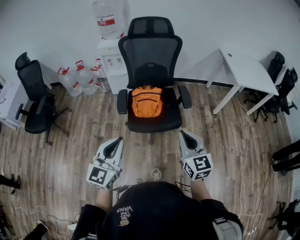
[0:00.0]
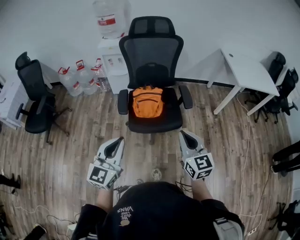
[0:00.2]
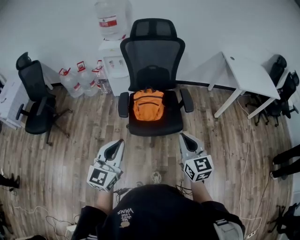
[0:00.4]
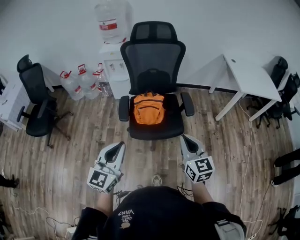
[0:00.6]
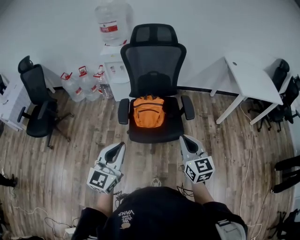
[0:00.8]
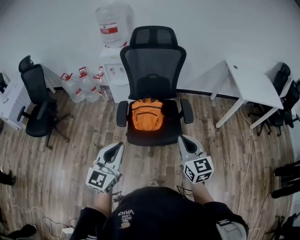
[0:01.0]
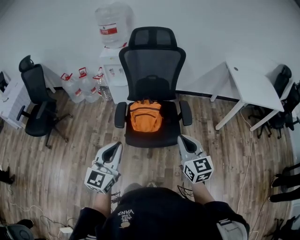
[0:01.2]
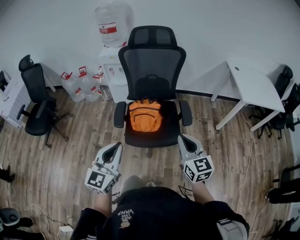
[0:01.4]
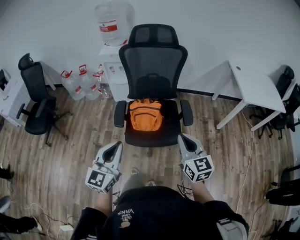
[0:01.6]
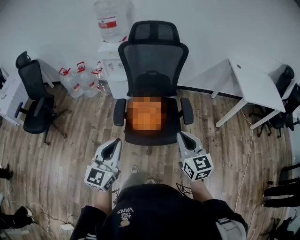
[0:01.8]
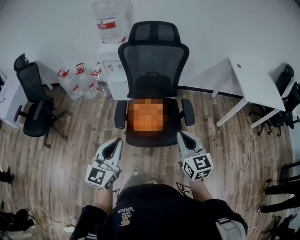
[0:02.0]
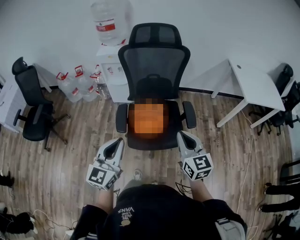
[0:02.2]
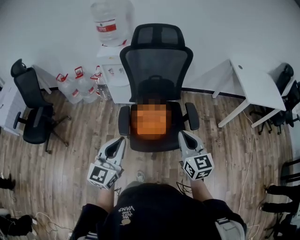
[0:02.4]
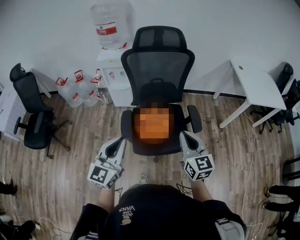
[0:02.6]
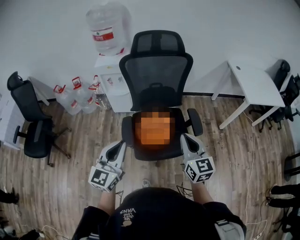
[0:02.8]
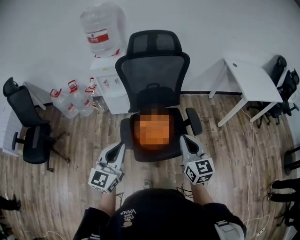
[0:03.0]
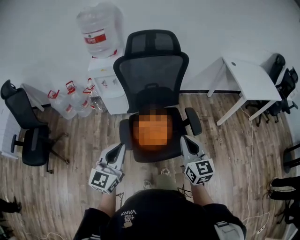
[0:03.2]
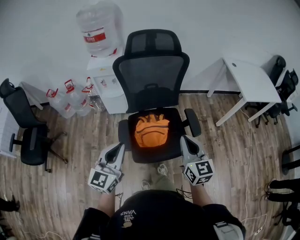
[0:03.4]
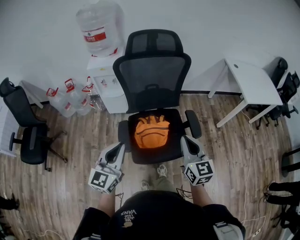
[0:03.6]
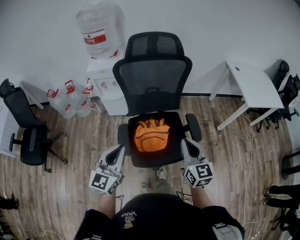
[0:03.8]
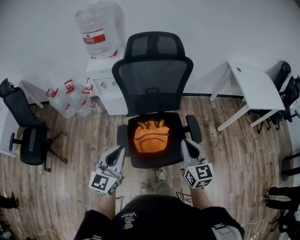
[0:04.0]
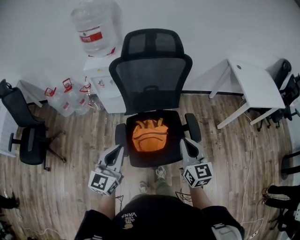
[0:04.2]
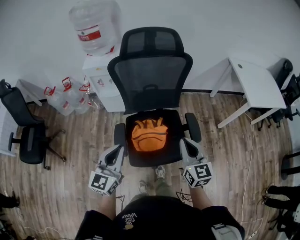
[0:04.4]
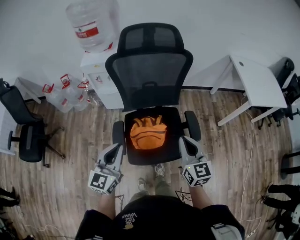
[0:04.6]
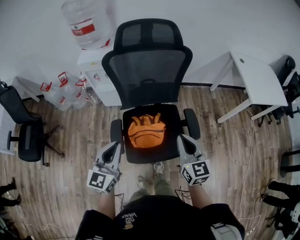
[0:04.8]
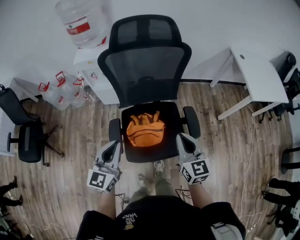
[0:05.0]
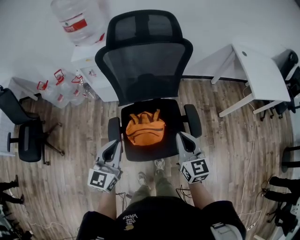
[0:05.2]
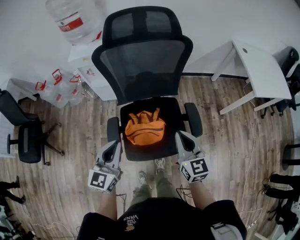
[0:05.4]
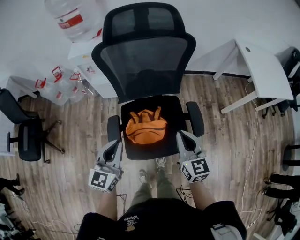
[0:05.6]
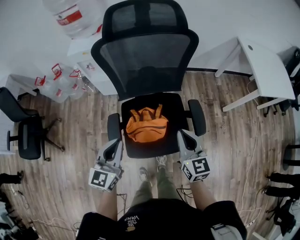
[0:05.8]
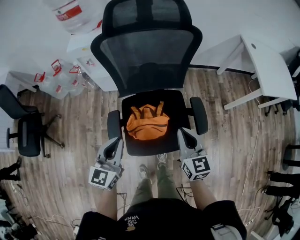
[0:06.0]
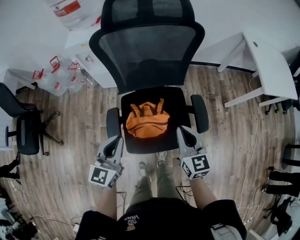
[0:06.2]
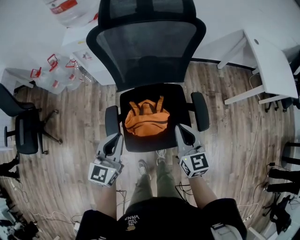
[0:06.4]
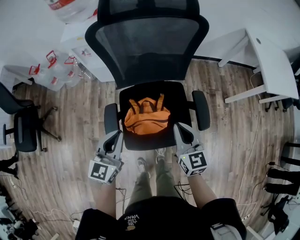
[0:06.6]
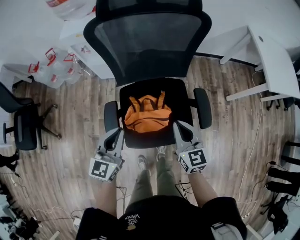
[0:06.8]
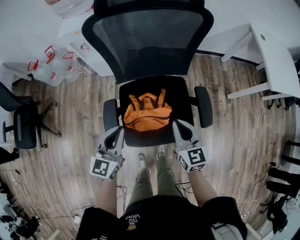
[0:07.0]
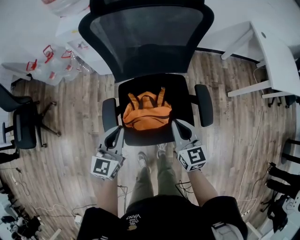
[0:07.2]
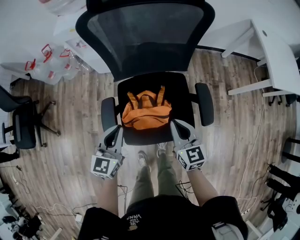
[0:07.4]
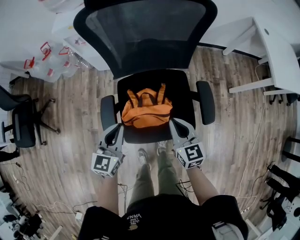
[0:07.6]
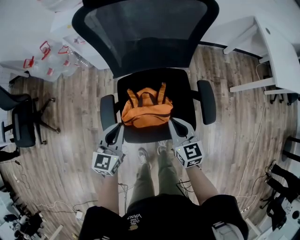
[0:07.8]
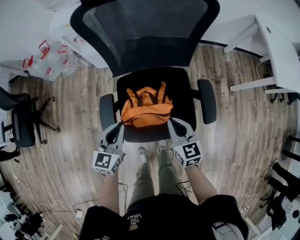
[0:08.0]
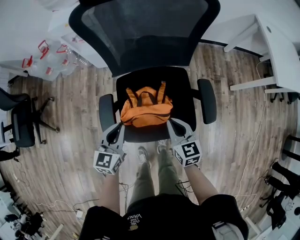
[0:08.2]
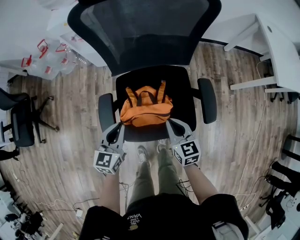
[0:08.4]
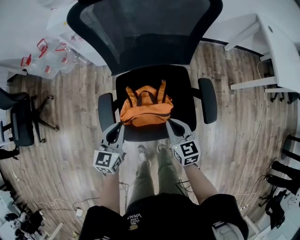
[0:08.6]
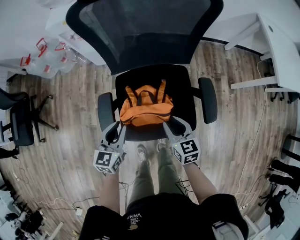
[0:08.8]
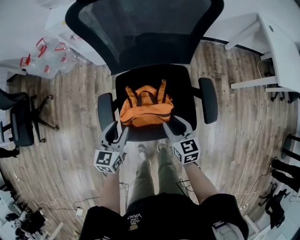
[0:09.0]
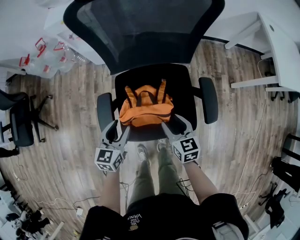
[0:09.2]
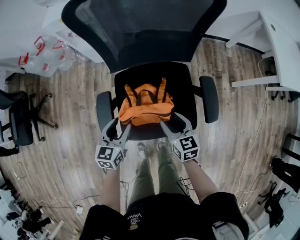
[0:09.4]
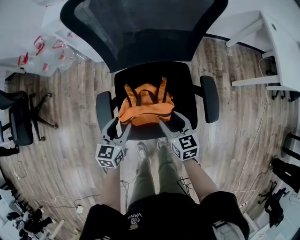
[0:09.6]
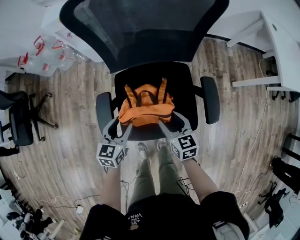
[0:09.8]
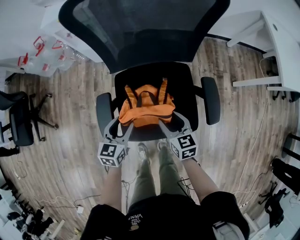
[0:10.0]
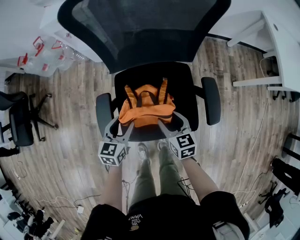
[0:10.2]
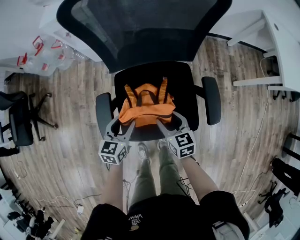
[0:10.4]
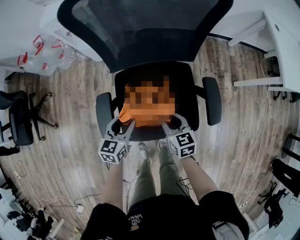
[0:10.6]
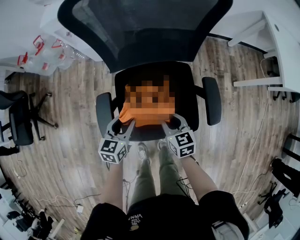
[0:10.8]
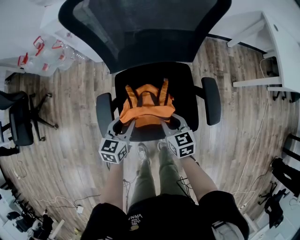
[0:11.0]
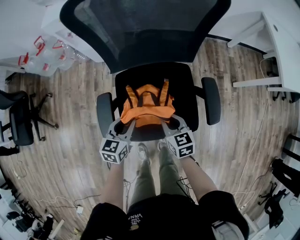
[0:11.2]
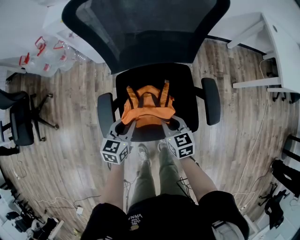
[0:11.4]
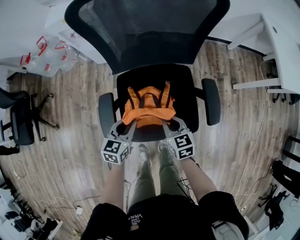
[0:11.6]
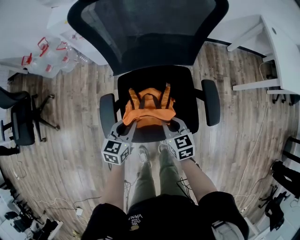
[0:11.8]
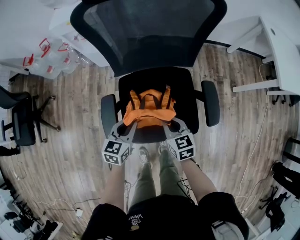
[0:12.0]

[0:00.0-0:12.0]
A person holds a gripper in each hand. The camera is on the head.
0:00.0 to 0:01.6: The two grippers go some 10 cm forward.
0:01.6 to 0:03.0: Both grippers travel together forward and to the left, approximately 20 cm.
0:03.0 to 0:04.4: Both grippers travel together forward, some 10 cm.
0:04.4 to 0:06.0: Both grippers travel together downward and forward, roughly 10 cm.
0:06.0 to 0:07.6: The grippers both shift downward by about 15 cm.
0:07.6 to 0:09.0: Both grippers move downward, approximately 10 cm. The right gripper opens up; the left gripper opens its fingers.
0:09.0 to 0:10.4: The left gripper shifts some 5 cm downward. The right gripper changes place by some 5 cm.
0:10.4 to 0:12.0: The right gripper closes its fingers. The left gripper closes.

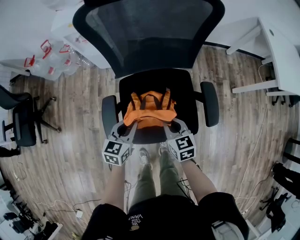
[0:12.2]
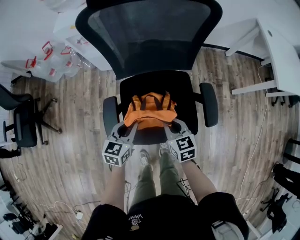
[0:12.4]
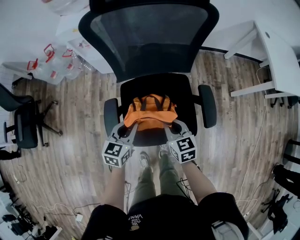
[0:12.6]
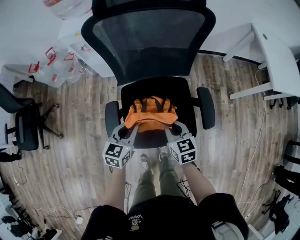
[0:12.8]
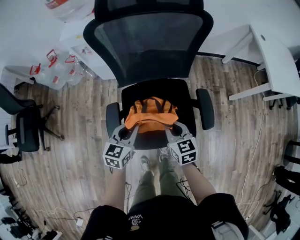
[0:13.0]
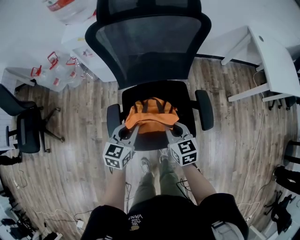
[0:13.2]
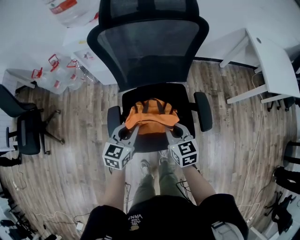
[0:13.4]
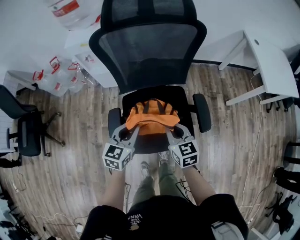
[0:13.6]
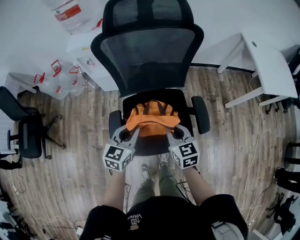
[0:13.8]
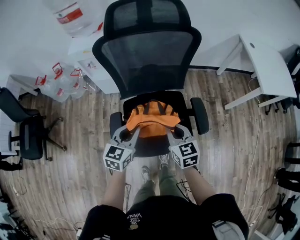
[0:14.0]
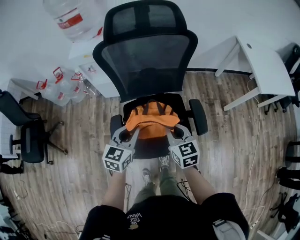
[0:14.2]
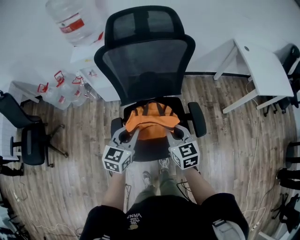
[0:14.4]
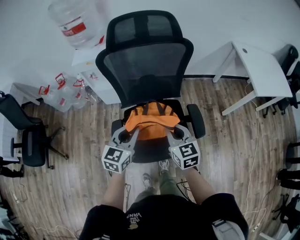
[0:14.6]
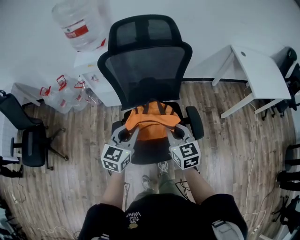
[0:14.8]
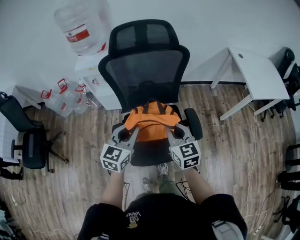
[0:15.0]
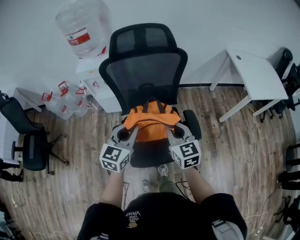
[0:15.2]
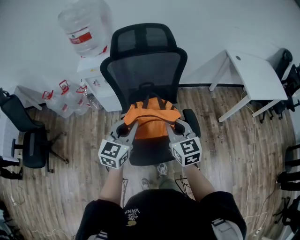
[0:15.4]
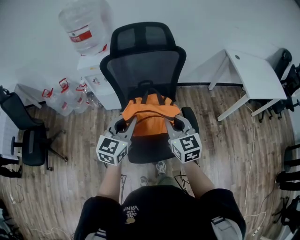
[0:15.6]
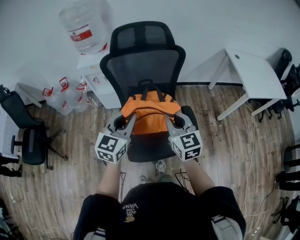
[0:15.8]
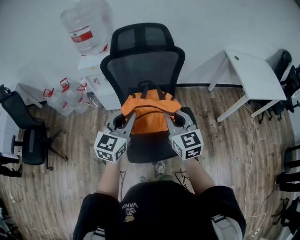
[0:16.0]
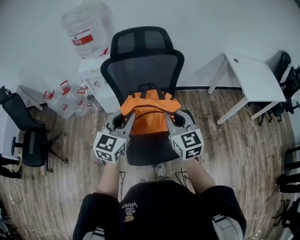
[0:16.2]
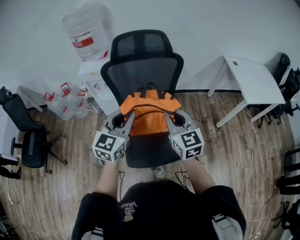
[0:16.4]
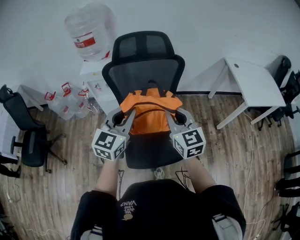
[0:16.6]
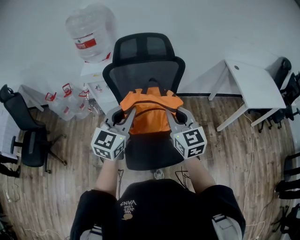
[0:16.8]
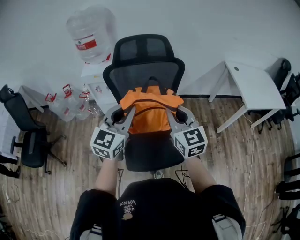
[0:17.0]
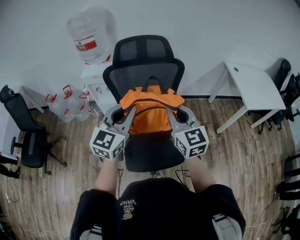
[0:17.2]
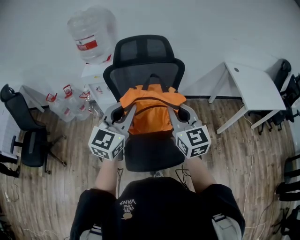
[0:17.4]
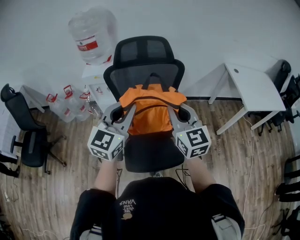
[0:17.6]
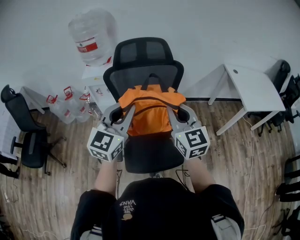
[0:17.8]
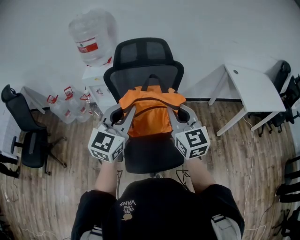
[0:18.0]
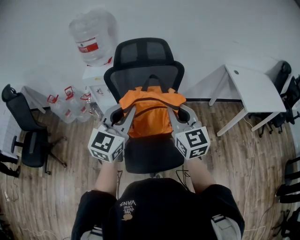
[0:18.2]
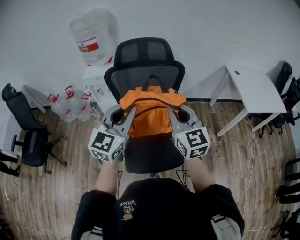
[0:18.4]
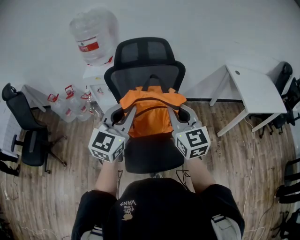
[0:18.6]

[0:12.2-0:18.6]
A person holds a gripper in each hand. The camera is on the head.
0:12.2 to 0:13.8: Both grippers travel together upward, some 15 cm.
0:13.8 to 0:15.4: Both grippers move upward, some 15 cm.
0:15.4 to 0:17.0: The two grippers go some 10 cm upward.
0:17.0 to 0:18.6: The grippers make only small movements.

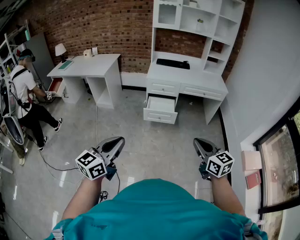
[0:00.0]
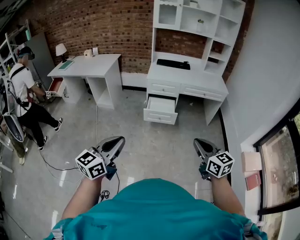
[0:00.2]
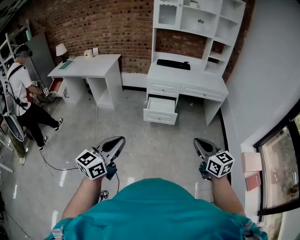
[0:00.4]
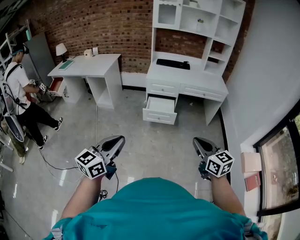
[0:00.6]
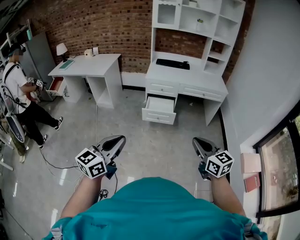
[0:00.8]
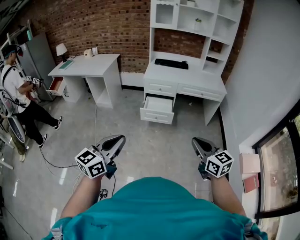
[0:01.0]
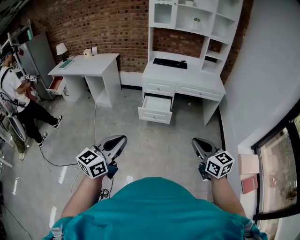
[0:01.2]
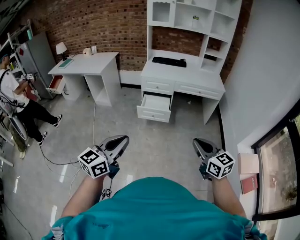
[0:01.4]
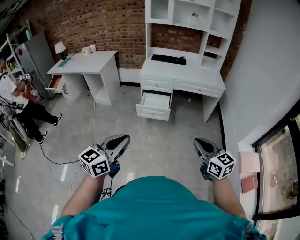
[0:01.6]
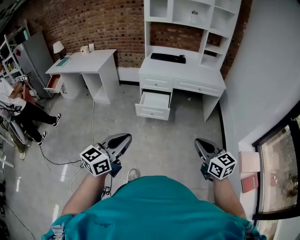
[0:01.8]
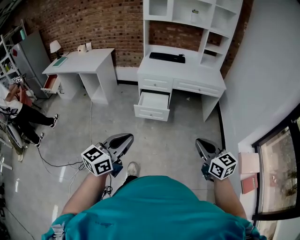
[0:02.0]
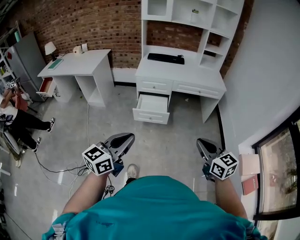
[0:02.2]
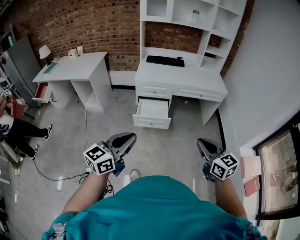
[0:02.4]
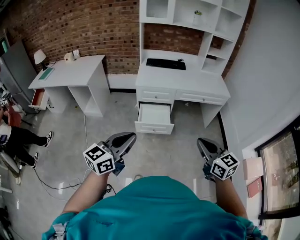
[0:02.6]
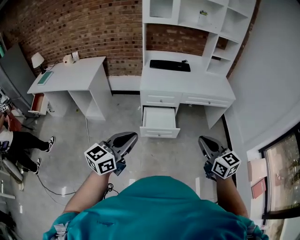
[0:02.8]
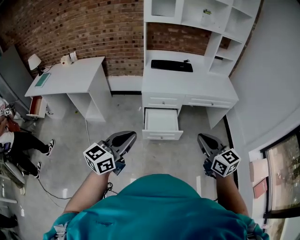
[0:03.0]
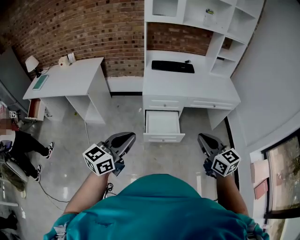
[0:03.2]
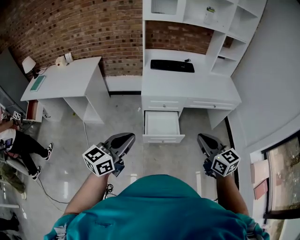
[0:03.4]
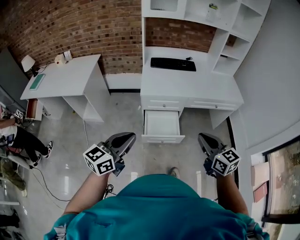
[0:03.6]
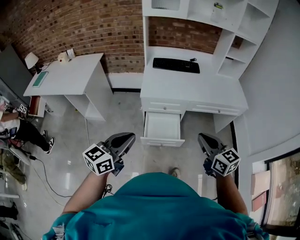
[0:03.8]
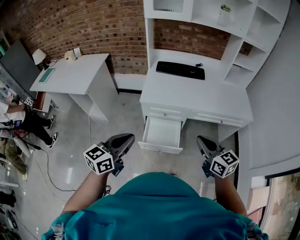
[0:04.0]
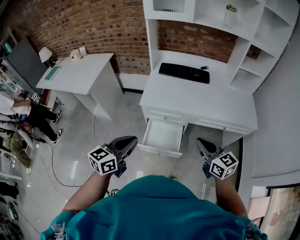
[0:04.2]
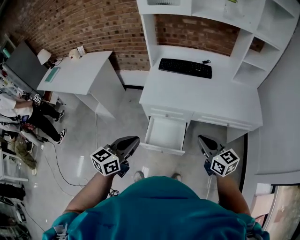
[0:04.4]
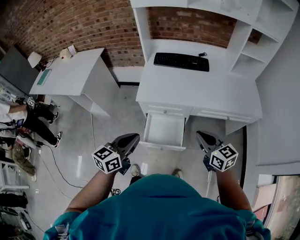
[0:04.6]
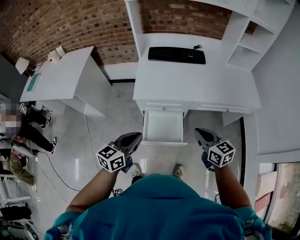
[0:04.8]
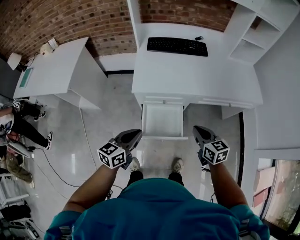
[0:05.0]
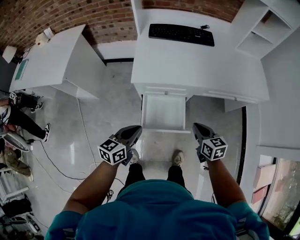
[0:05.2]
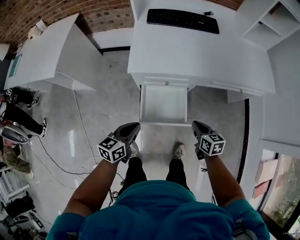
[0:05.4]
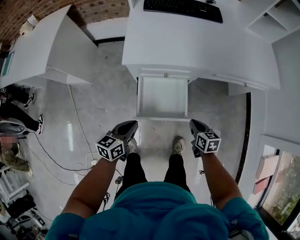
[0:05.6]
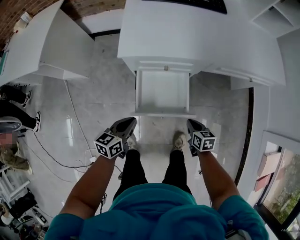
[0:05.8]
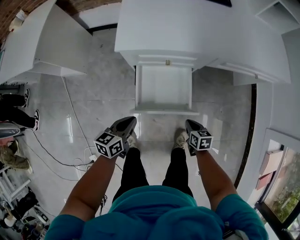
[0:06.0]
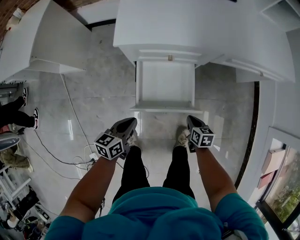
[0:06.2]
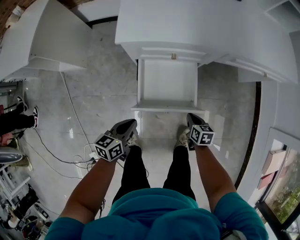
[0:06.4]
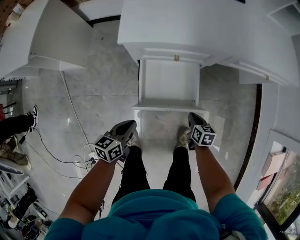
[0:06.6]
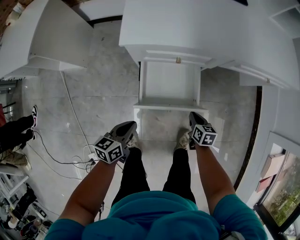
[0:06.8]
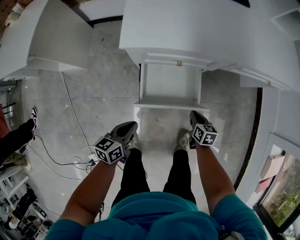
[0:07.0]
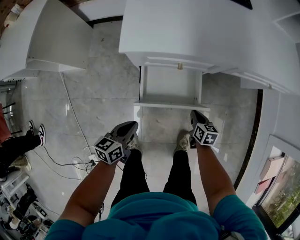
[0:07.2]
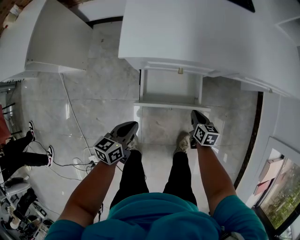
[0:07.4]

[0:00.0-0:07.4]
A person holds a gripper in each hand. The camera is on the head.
0:00.0 to 0:01.4: The grippers both shift to the right by roughly 10 cm.
0:01.4 to 0:03.0: The two grippers go roughly 40 cm forward and to the left.
0:03.0 to 0:04.4: The right gripper travels forward by about 30 cm, while the left gripper is displaced forward and to the right by some 25 cm.
0:04.4 to 0:06.0: Both grippers travel together downward, about 40 cm. The right gripper points its fingers some 40 degrees further downward, while the left gripper swivels some 20 degrees.
0:06.0 to 0:07.4: The right gripper moves forward, some 10 cm, while the left gripper changes place by about 5 cm.
